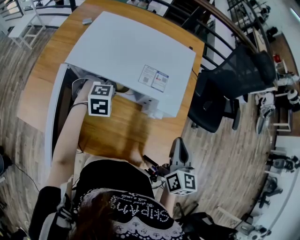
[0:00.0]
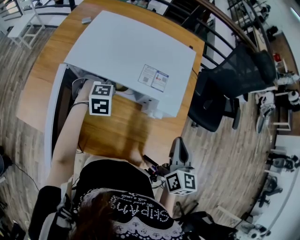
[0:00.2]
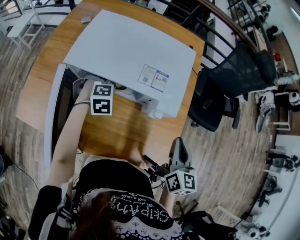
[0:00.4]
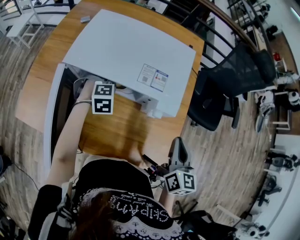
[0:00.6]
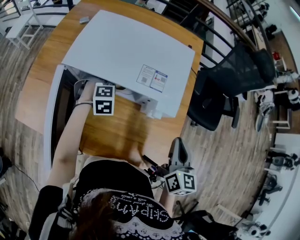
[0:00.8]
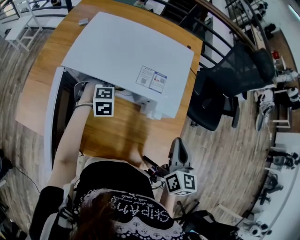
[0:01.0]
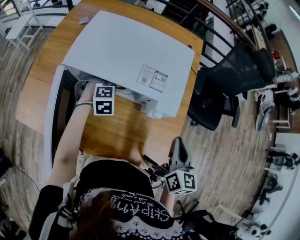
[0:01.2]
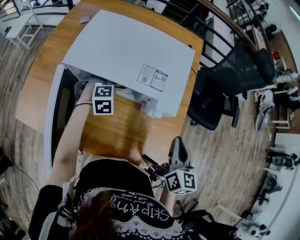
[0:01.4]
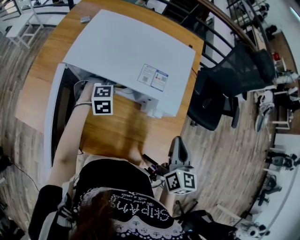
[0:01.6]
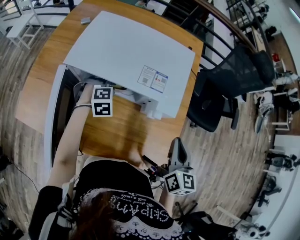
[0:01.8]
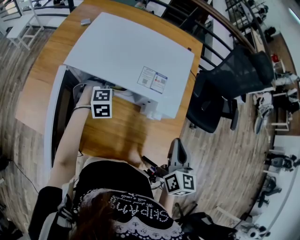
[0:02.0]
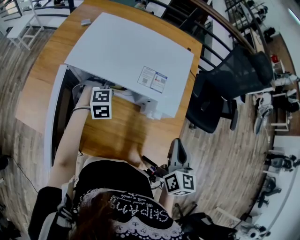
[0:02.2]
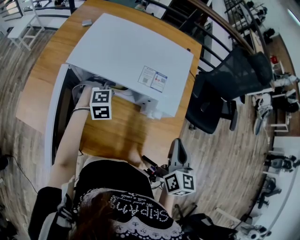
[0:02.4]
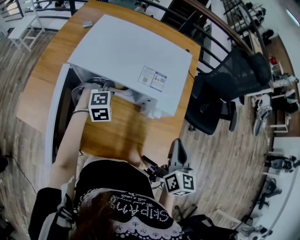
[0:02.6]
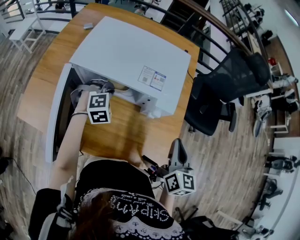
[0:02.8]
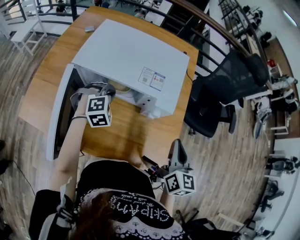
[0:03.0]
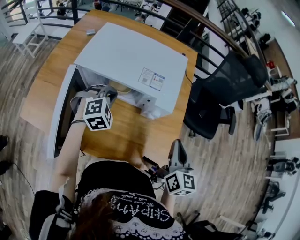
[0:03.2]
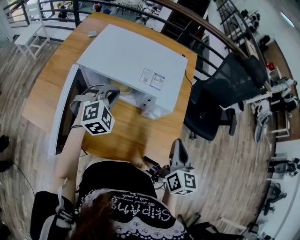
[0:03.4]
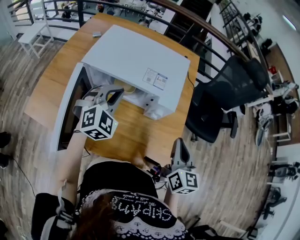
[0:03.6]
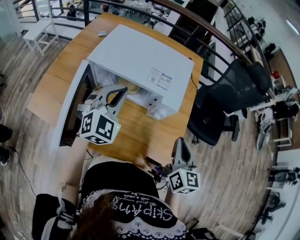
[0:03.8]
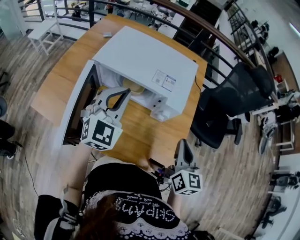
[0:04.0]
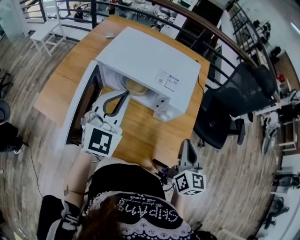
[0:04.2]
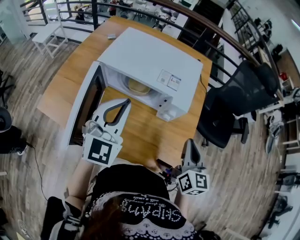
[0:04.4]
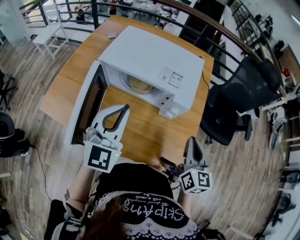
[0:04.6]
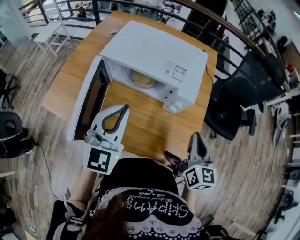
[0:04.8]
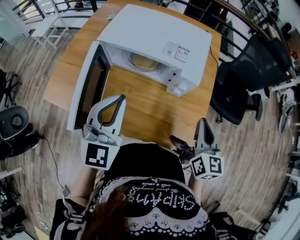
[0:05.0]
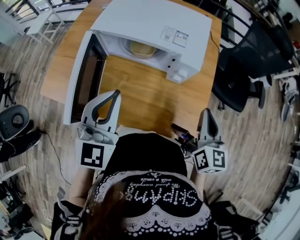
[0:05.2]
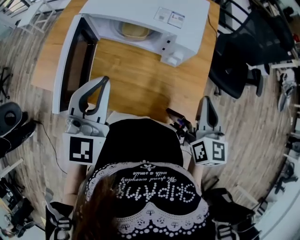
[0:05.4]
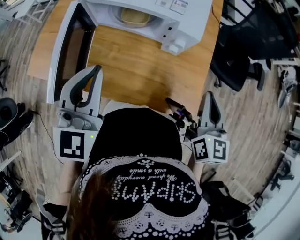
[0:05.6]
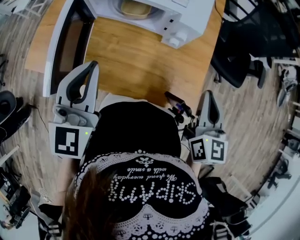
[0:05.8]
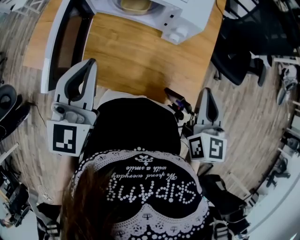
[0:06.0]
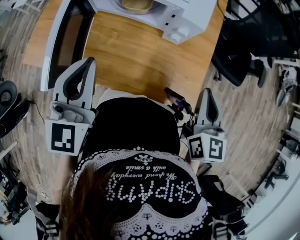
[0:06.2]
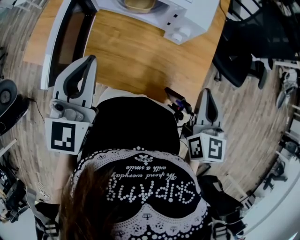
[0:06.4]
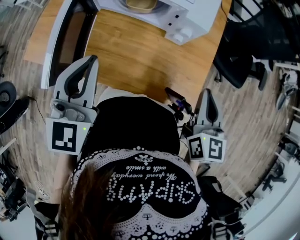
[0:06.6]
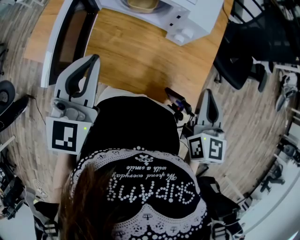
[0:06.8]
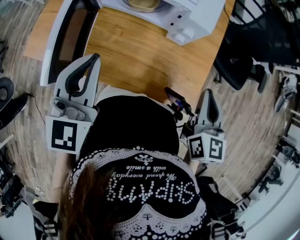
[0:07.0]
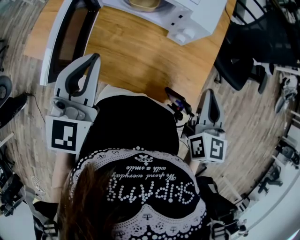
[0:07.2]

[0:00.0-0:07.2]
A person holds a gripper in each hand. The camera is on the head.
0:00.0 to 0:01.4: The left gripper opens.
0:01.4 to 0:02.8: The left gripper heads upward, covering roughly 5 cm, and closes its fingers.
0:02.8 to 0:04.4: The left gripper travels upward and backward by approximately 30 cm, and angles its fingers upward, by about 50 degrees.
0:04.4 to 0:05.8: The right gripper shifts about 5 cm backward; the left gripper heads backward, covering some 10 cm, and rotates some 20 degrees.
0:05.8 to 0:07.2: The grippers stay close to where they were, moving slightly.

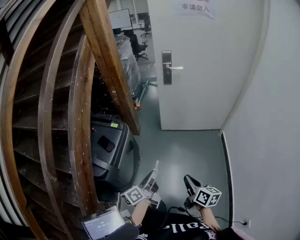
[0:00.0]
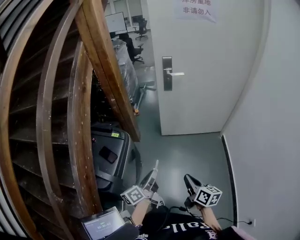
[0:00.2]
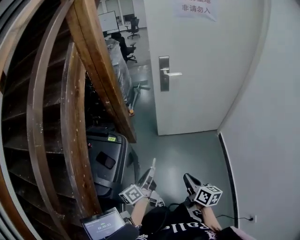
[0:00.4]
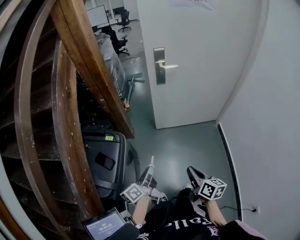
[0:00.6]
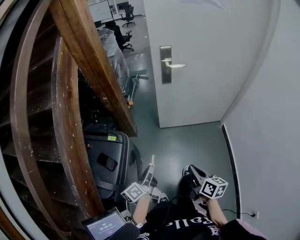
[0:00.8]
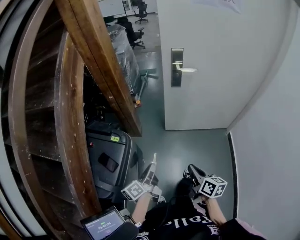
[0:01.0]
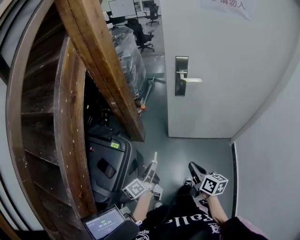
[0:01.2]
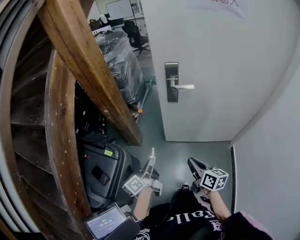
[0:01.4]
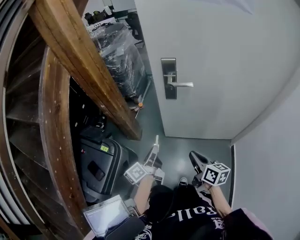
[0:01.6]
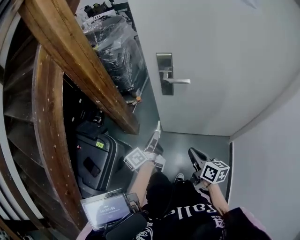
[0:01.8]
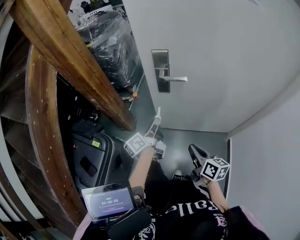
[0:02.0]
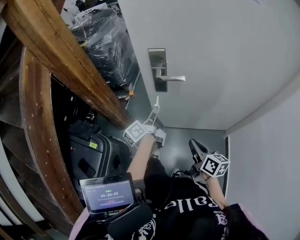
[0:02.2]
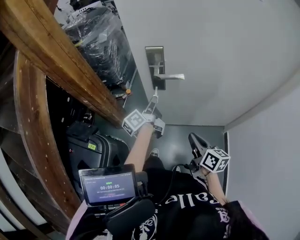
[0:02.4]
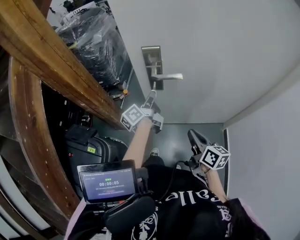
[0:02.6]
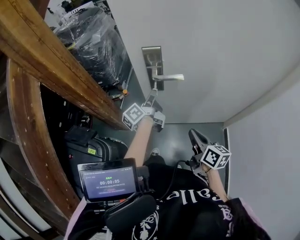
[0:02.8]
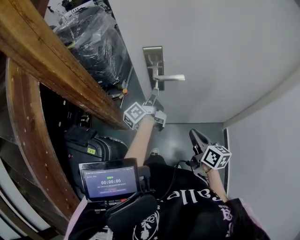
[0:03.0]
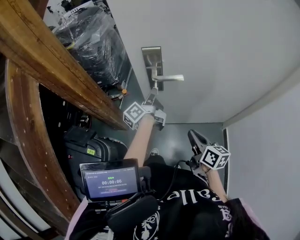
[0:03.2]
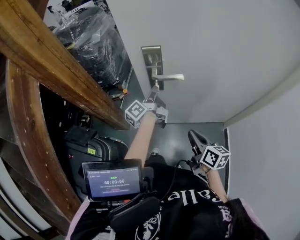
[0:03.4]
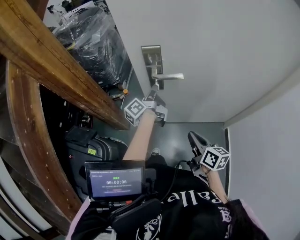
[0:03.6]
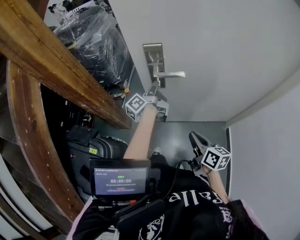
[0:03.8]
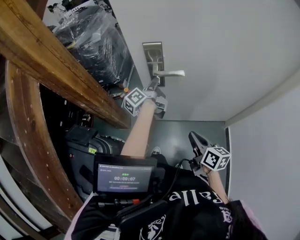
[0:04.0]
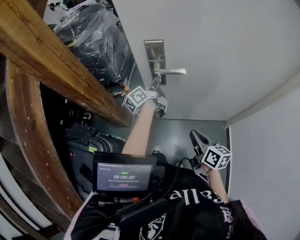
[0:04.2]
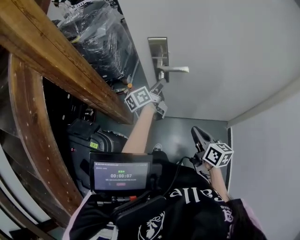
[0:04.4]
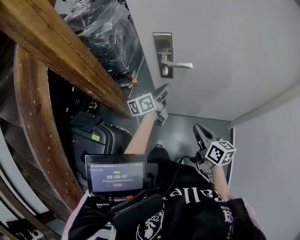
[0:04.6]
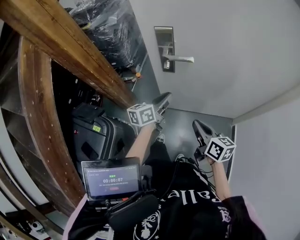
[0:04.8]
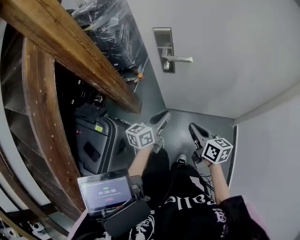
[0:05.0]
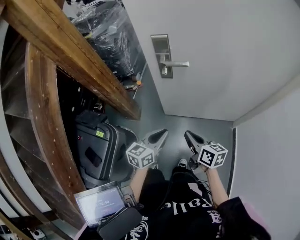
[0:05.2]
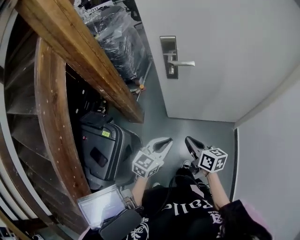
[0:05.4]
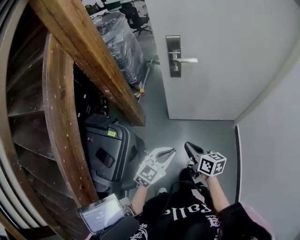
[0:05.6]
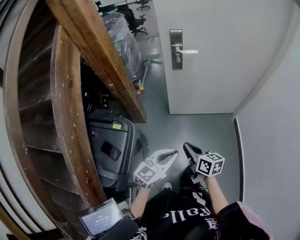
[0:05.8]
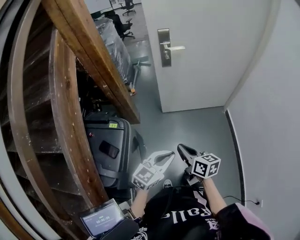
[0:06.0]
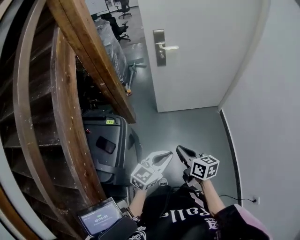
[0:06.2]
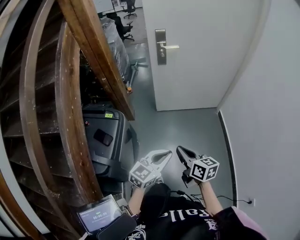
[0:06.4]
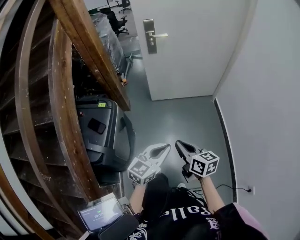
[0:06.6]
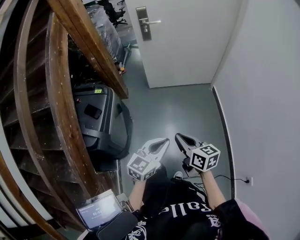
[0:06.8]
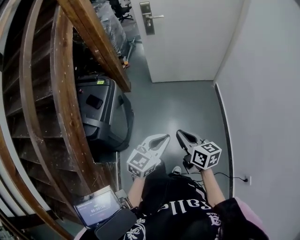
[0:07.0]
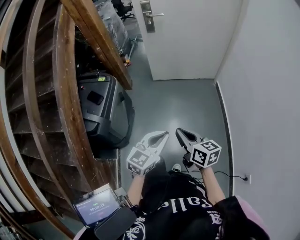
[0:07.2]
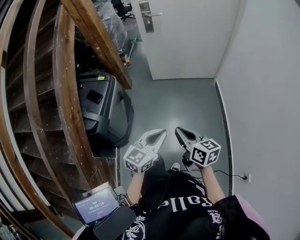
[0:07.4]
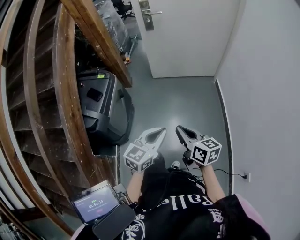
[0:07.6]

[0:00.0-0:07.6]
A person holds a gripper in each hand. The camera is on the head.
0:00.0 to 0:01.6: The two grippers travel together, forward, approximately 40 cm.
0:01.6 to 0:03.0: The left gripper travels forward by about 30 cm, while the right gripper moves forward, about 10 cm.
0:03.0 to 0:04.6: The left gripper ends up some 5 cm from where it was, and rotates roughly 30 degrees.
0:04.6 to 0:06.0: Both grippers are carried backward, roughly 50 cm. The left gripper rolls clockwise, seen from behind, by about 50 degrees.
0:06.0 to 0:07.6: Both grippers move backward and to the right, approximately 30 cm.

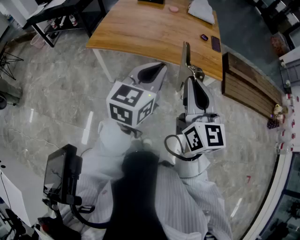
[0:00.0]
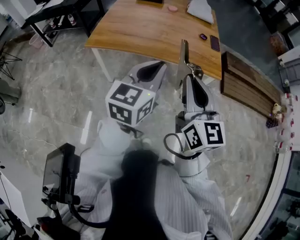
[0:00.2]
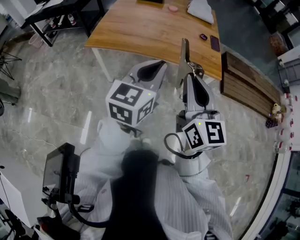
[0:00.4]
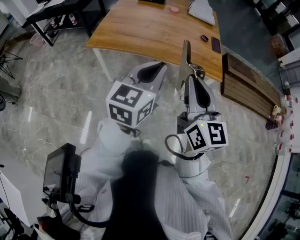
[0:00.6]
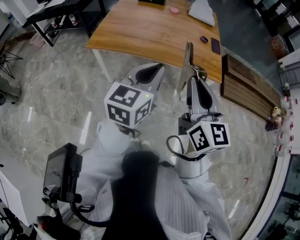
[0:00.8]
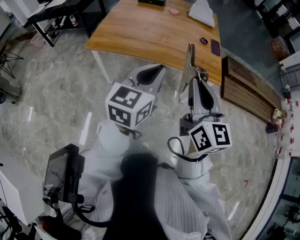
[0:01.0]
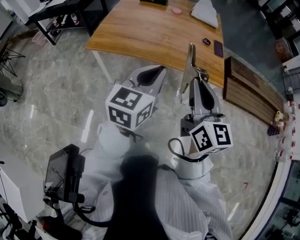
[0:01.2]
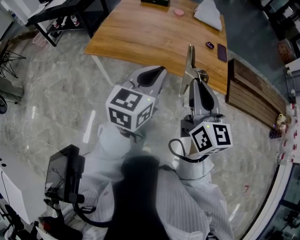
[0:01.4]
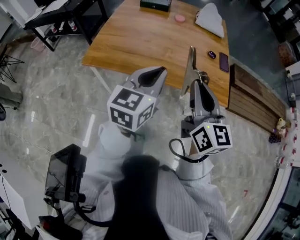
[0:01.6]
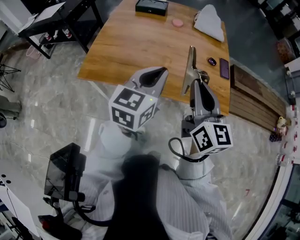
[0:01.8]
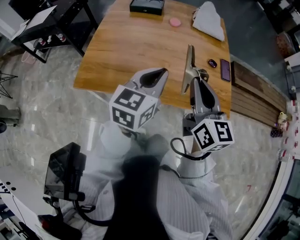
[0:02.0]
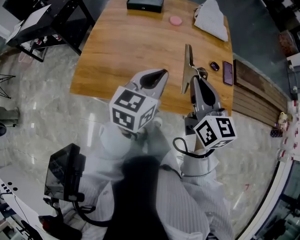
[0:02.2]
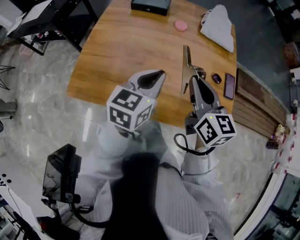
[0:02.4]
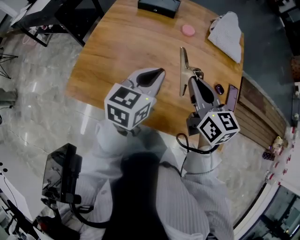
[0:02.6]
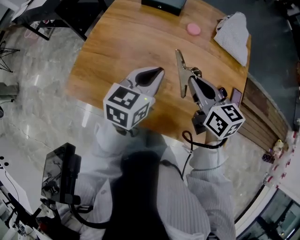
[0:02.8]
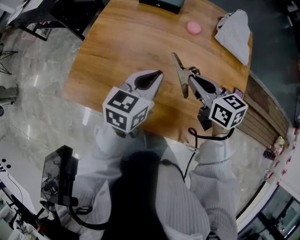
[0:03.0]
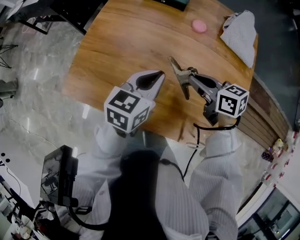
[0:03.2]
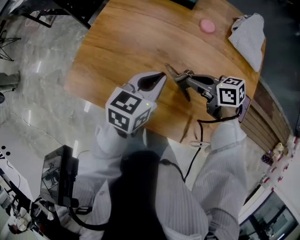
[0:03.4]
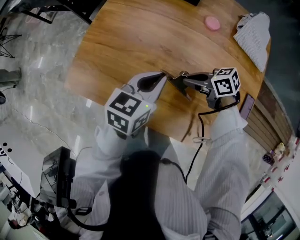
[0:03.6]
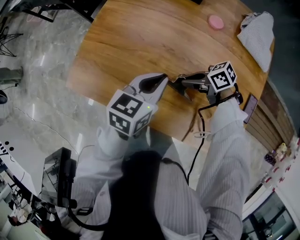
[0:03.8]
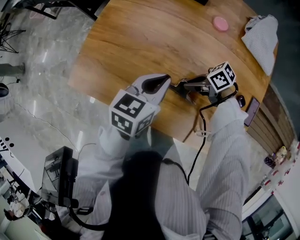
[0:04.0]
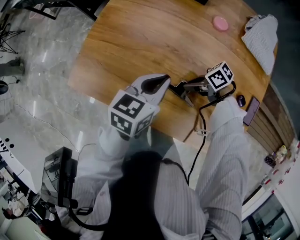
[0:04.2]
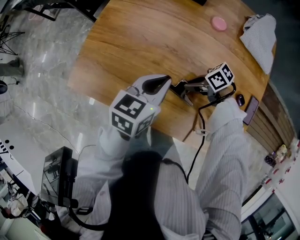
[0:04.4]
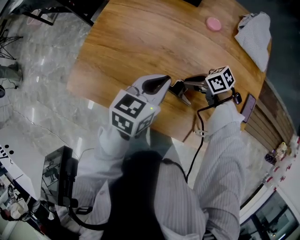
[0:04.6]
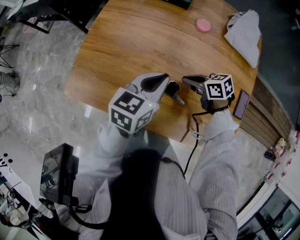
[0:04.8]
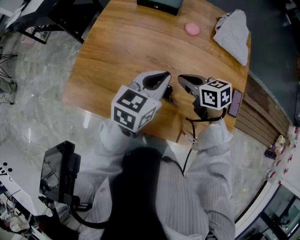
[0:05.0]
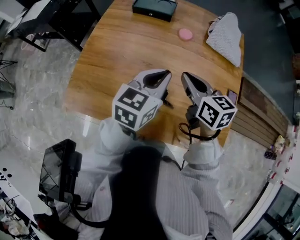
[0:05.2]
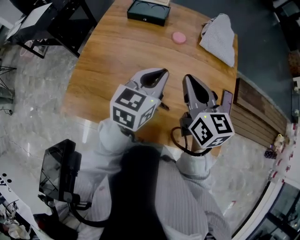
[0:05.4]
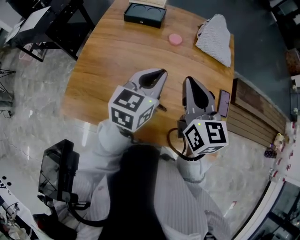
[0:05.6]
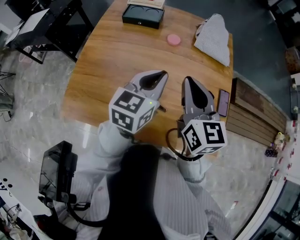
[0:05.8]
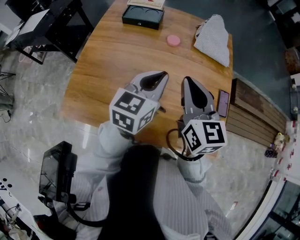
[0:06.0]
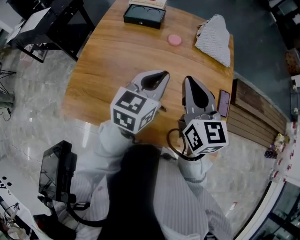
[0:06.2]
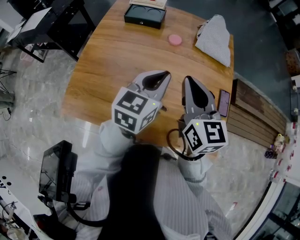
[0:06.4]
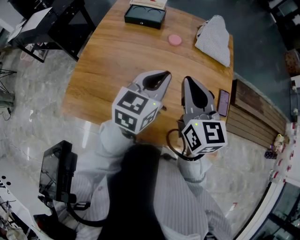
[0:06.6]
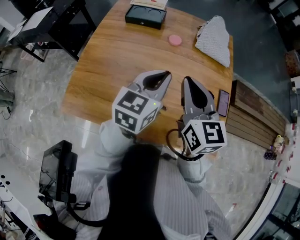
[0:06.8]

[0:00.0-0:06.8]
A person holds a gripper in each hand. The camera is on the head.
0:00.0 to 0:01.4: Both grippers travel together forward, some 10 cm.
0:01.4 to 0:02.8: The pair of grippers is taken forward, roughly 40 cm. The right gripper rotates roughly 30 degrees.
0:02.8 to 0:04.0: The right gripper moves downward, approximately 25 cm, and rotates approximately 70 degrees. Meanwhile the left gripper is displaced downward by about 10 cm.
0:04.0 to 0:05.4: The left gripper is displaced upward by roughly 15 cm, while the right gripper goes about 30 cm upward, and changes its angle by some 90 degrees.
0:05.4 to 0:06.8: The grippers make only small movements.

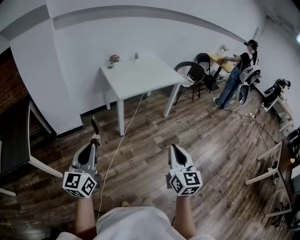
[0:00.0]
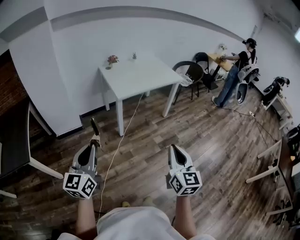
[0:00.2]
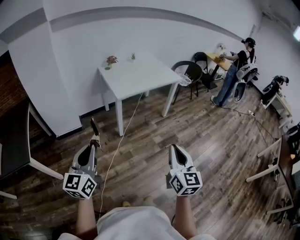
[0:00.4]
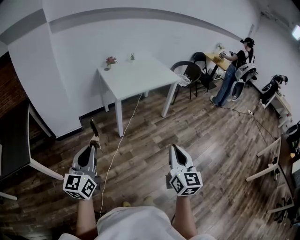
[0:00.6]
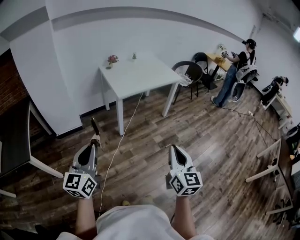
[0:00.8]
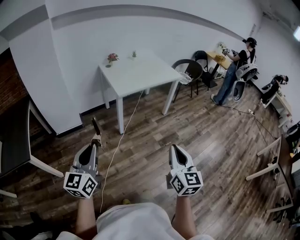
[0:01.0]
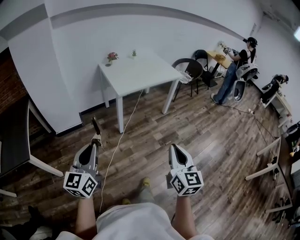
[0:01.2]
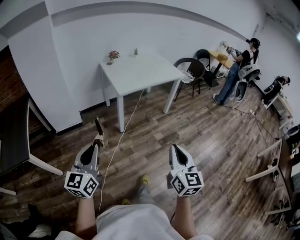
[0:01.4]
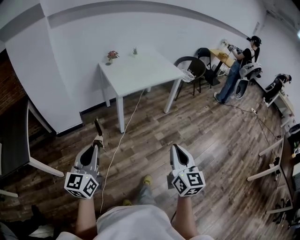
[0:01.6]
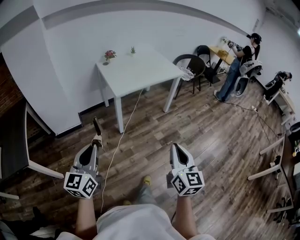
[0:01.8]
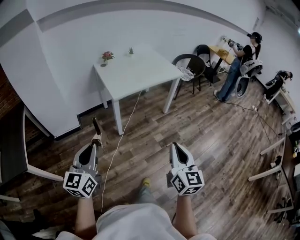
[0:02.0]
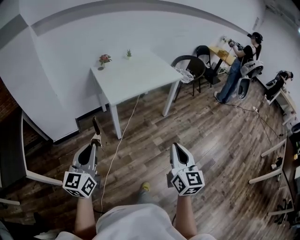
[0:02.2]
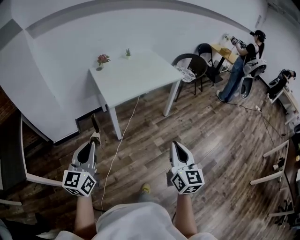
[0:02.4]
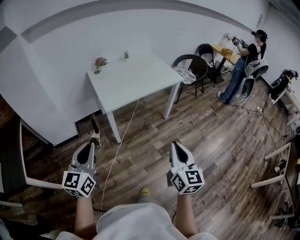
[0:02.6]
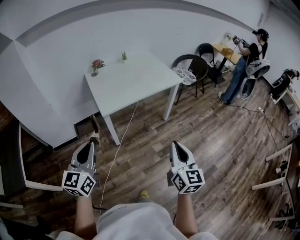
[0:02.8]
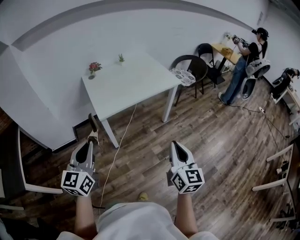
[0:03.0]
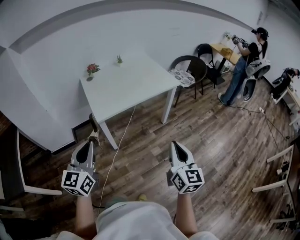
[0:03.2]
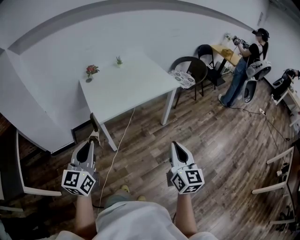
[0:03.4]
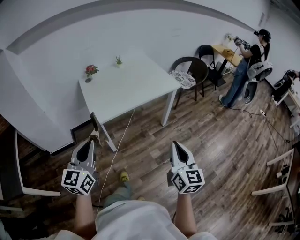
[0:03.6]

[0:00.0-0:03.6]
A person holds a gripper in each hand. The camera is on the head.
0:00.0 to 0:01.8: The left gripper shifts by approximately 5 cm.
0:01.8 to 0:03.6: Both grippers move forward and to the right, approximately 35 cm.
